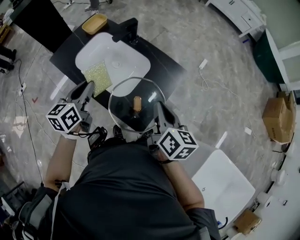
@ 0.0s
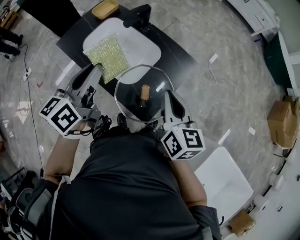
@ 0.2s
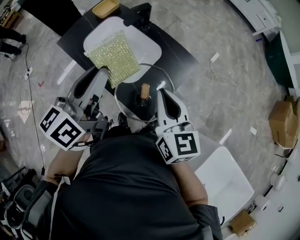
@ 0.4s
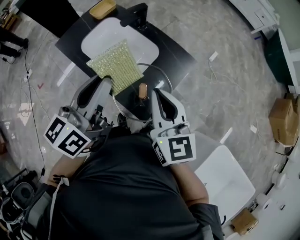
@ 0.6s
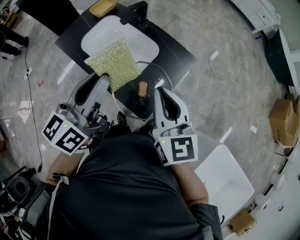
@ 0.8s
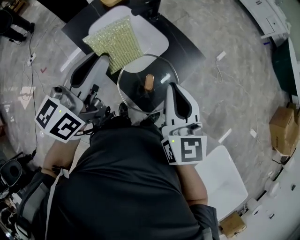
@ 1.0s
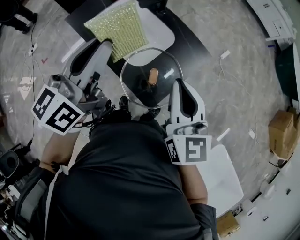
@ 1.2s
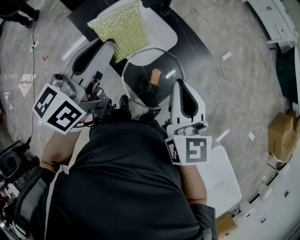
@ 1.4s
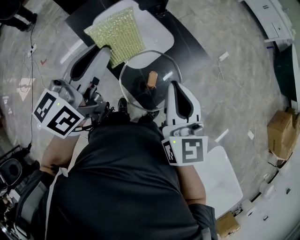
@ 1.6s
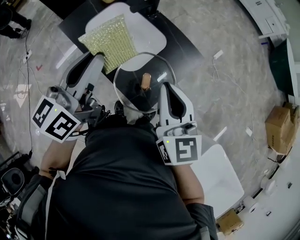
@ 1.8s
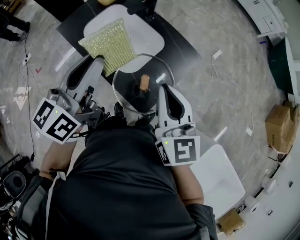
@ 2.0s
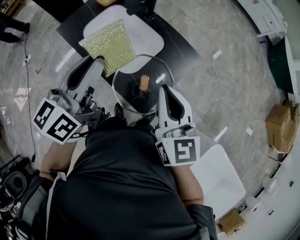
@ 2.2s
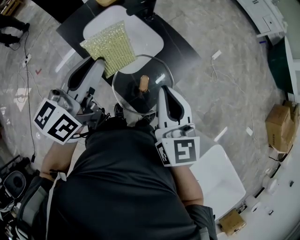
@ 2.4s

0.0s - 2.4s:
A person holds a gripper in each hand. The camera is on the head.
0.0s - 1.2s: The right gripper shifts roughly 10 cm upward, and swivels about 30 degrees, while the left gripper heads upward, covering about 15 cm.
1.2s - 2.4s: There are only small adjustments of the grippers.

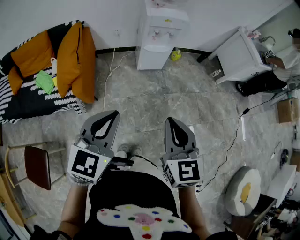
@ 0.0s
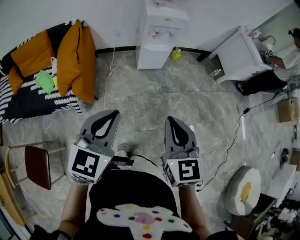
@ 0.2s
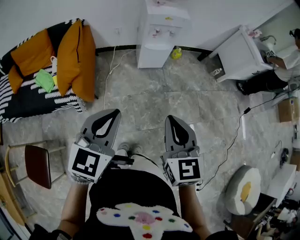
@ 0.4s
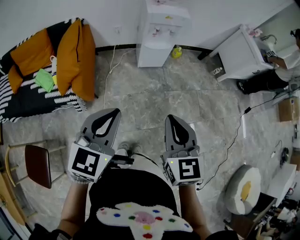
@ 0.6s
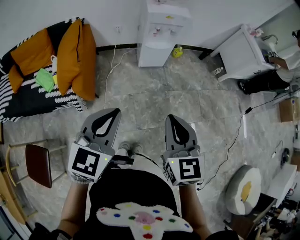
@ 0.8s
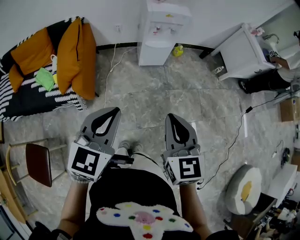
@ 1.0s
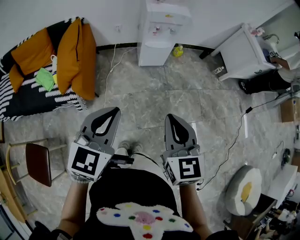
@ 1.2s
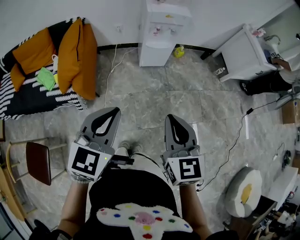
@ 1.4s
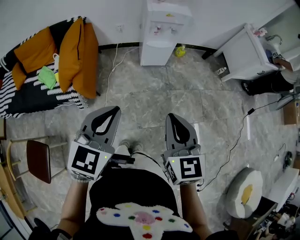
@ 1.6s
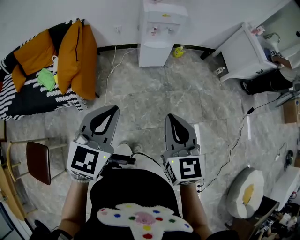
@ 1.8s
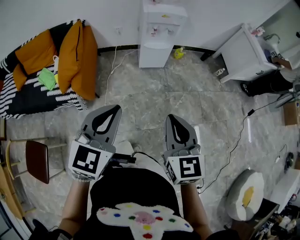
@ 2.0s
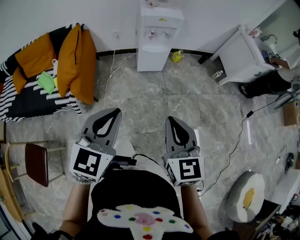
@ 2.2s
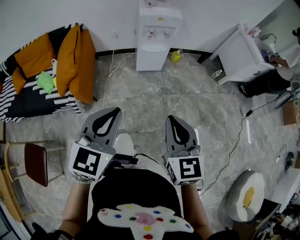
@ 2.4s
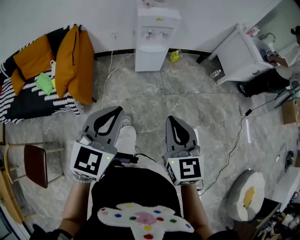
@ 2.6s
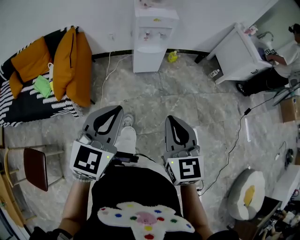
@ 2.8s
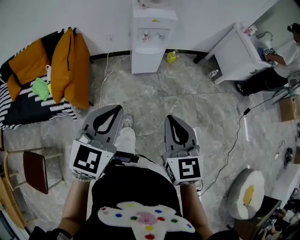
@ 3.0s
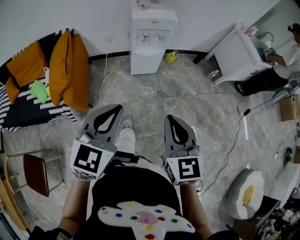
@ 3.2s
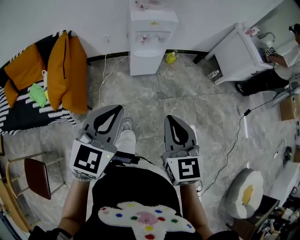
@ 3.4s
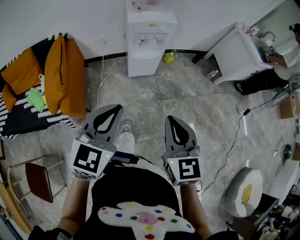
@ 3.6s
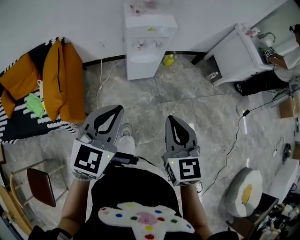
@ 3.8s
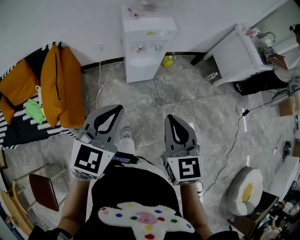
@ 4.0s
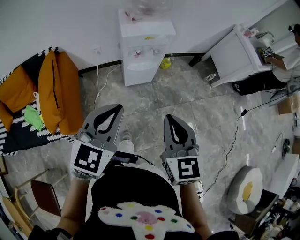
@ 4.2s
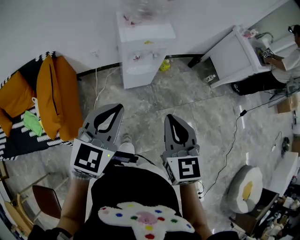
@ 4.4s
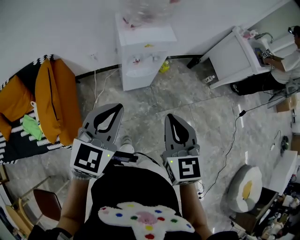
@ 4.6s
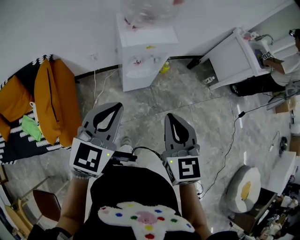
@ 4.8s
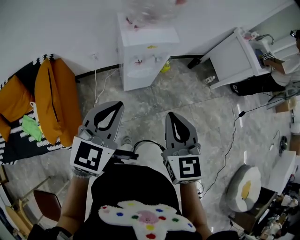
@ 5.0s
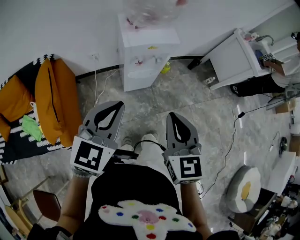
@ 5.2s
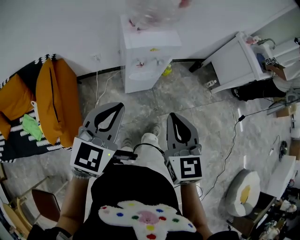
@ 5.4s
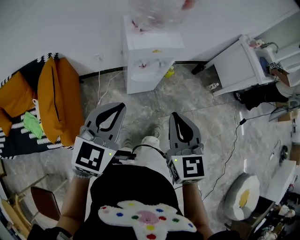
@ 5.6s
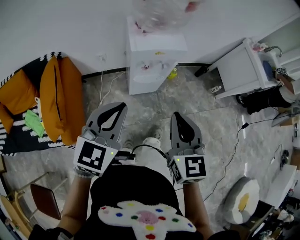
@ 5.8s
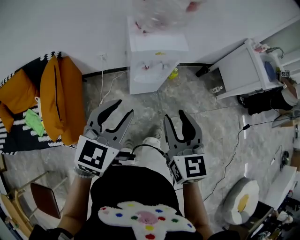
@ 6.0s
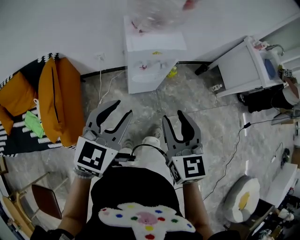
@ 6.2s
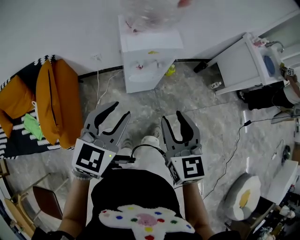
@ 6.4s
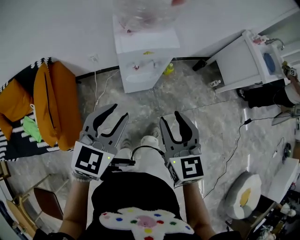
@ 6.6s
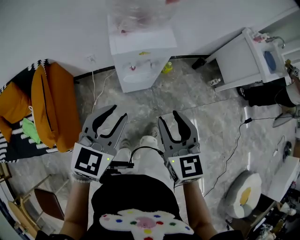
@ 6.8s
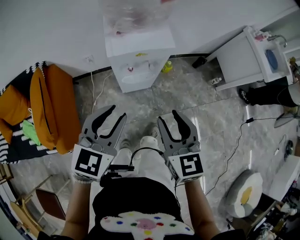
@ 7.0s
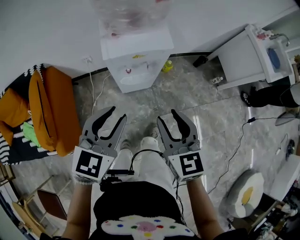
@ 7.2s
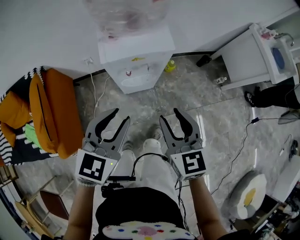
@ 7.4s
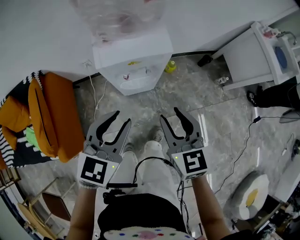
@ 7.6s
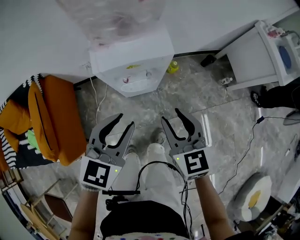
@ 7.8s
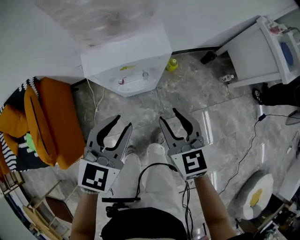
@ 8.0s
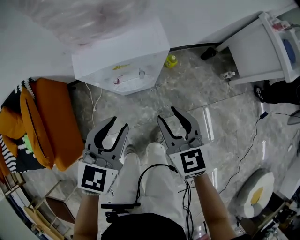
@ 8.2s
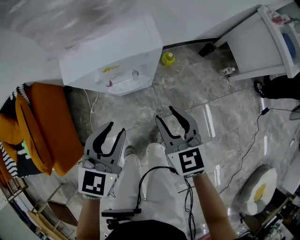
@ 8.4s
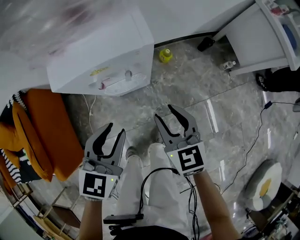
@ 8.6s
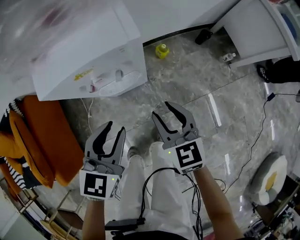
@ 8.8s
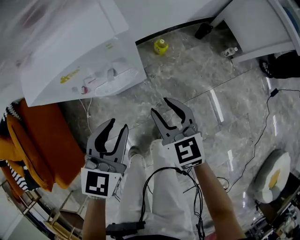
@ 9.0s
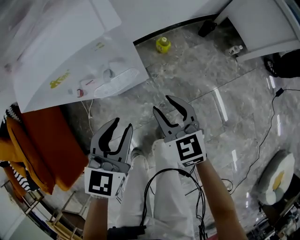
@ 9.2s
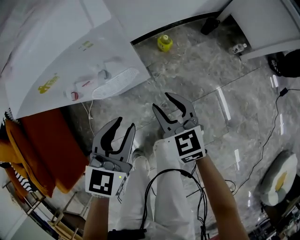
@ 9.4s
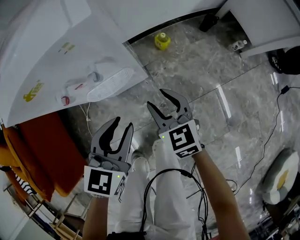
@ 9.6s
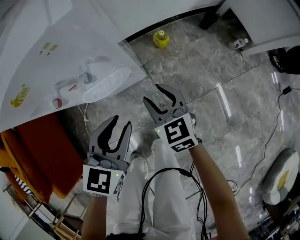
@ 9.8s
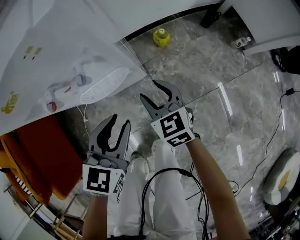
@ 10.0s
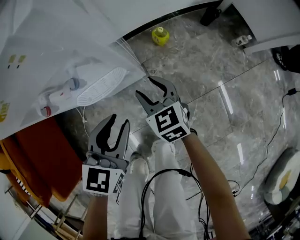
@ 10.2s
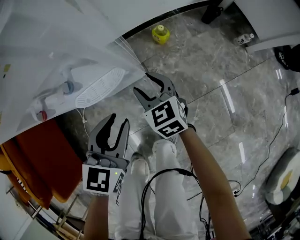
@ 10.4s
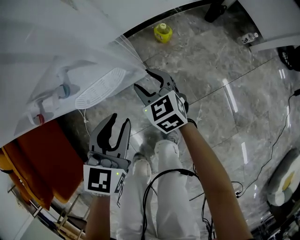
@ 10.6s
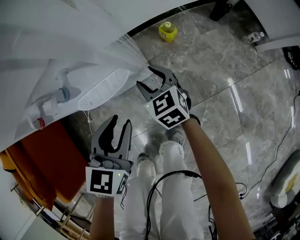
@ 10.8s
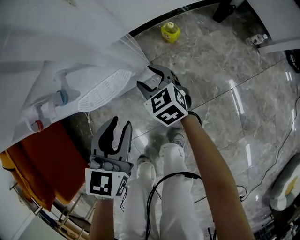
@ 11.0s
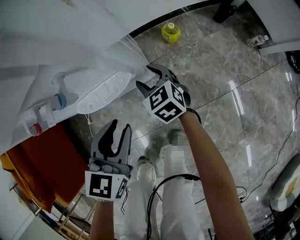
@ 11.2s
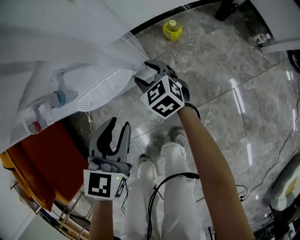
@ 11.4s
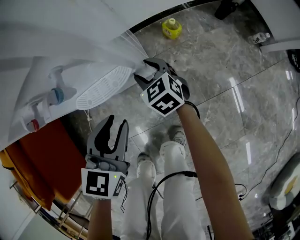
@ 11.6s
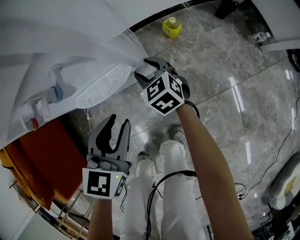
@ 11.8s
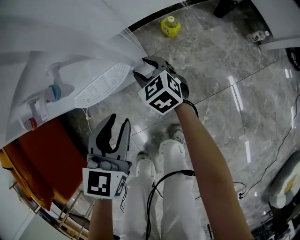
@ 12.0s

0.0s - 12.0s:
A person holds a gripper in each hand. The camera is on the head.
0.0s - 1.6s: The grippers make only small movements.
1.6s - 3.0s: The left gripper is displaced to the right by roughly 5 cm.
3.0s - 4.4s: Both grippers travel together forward, some 25 cm.
4.4s - 6.0s: Both grippers move forward, some 5 cm. The left gripper opens its fingers; the right gripper opens.
6.0s - 7.6s: The left gripper shifts some 15 cm forward, to the right and downward. Meanwhile the right gripper heads forward, downward and to the right, covering approximately 20 cm.
7.6s - 9.0s: The two grippers go approximately 20 cm downward.
9.0s - 10.4s: The right gripper shifts some 25 cm downward and forward, while the left gripper goes some 15 cm downward.
10.4s - 12.0s: The right gripper travels downward and forward by roughly 10 cm.

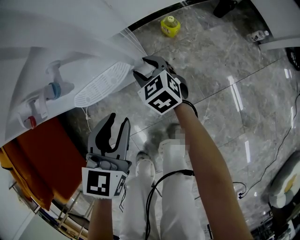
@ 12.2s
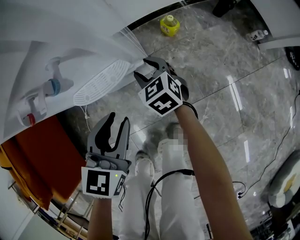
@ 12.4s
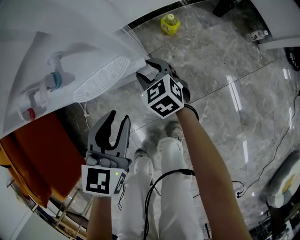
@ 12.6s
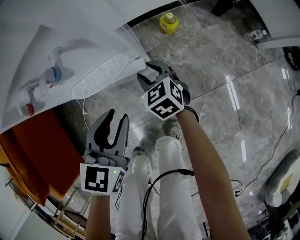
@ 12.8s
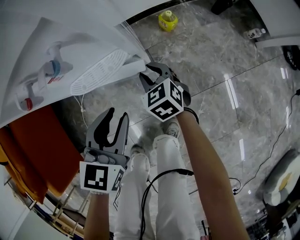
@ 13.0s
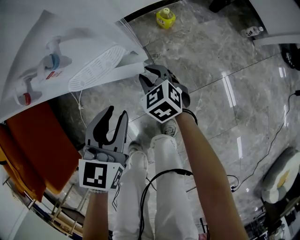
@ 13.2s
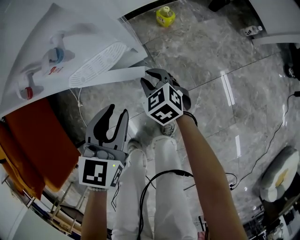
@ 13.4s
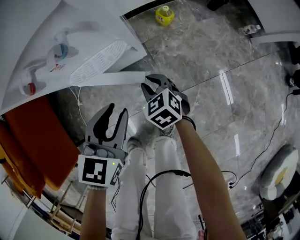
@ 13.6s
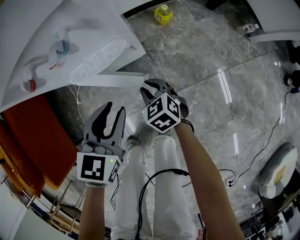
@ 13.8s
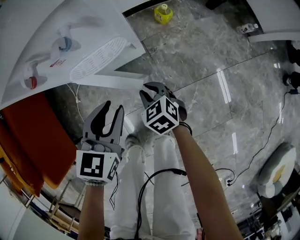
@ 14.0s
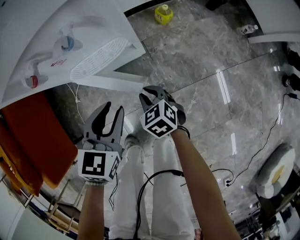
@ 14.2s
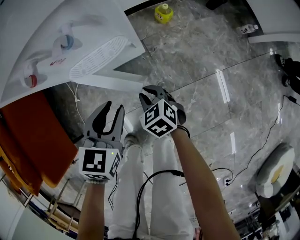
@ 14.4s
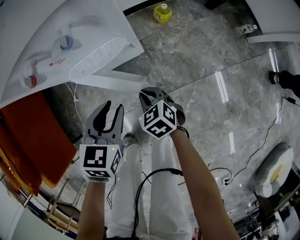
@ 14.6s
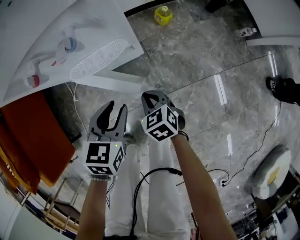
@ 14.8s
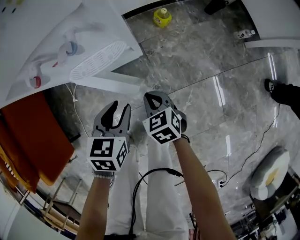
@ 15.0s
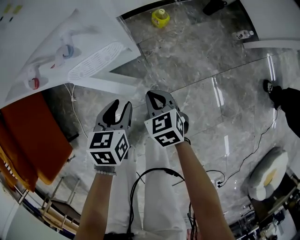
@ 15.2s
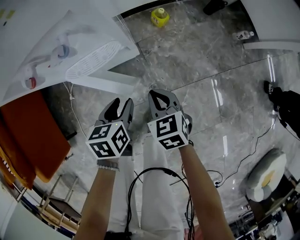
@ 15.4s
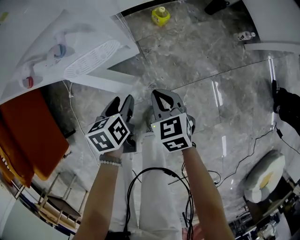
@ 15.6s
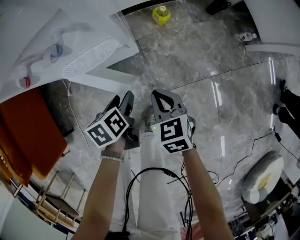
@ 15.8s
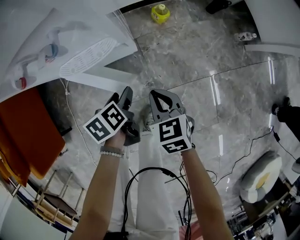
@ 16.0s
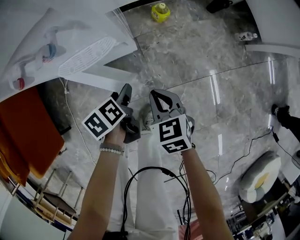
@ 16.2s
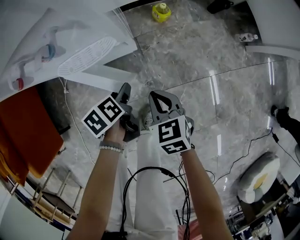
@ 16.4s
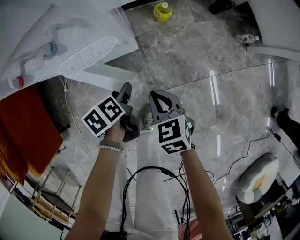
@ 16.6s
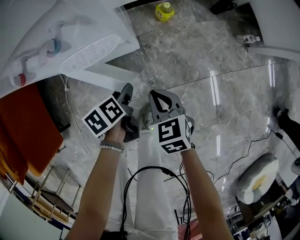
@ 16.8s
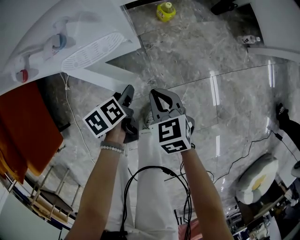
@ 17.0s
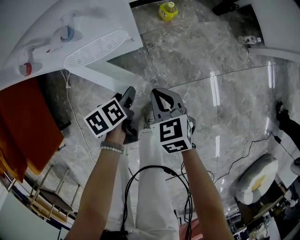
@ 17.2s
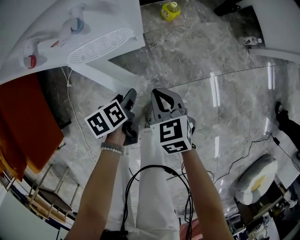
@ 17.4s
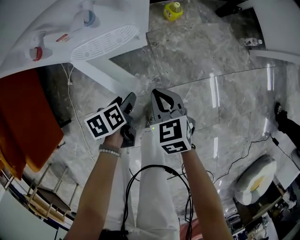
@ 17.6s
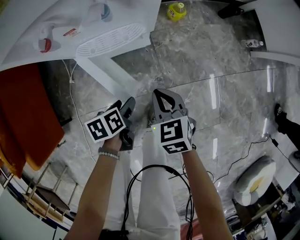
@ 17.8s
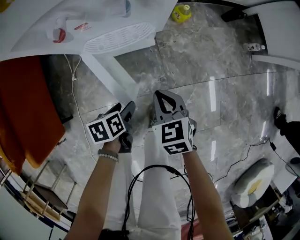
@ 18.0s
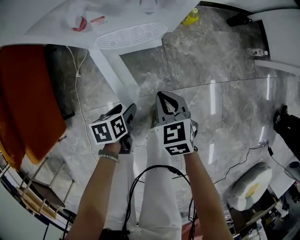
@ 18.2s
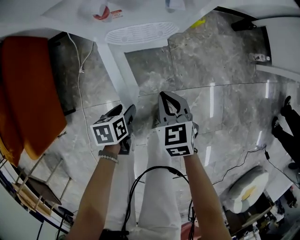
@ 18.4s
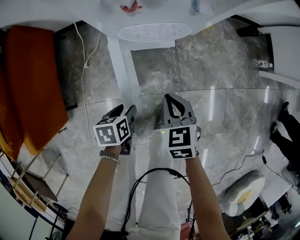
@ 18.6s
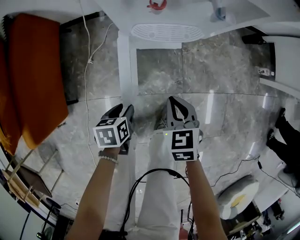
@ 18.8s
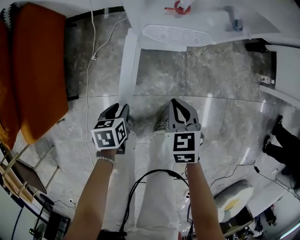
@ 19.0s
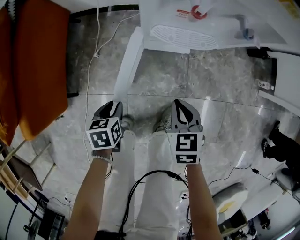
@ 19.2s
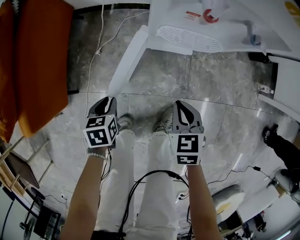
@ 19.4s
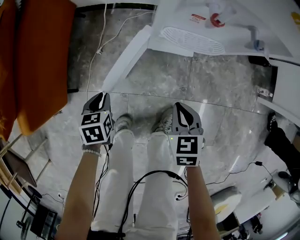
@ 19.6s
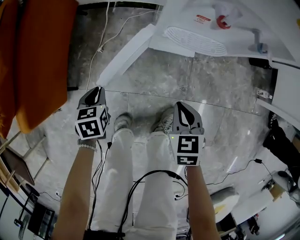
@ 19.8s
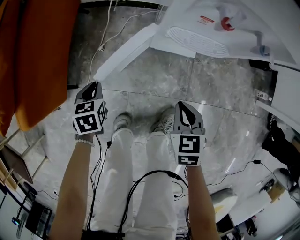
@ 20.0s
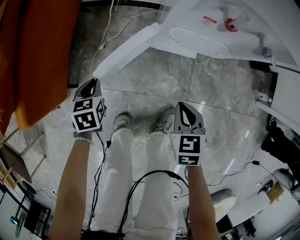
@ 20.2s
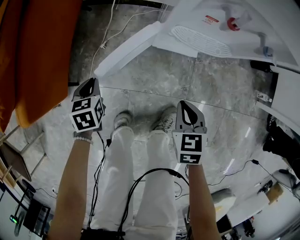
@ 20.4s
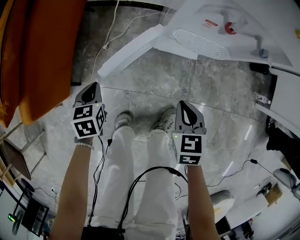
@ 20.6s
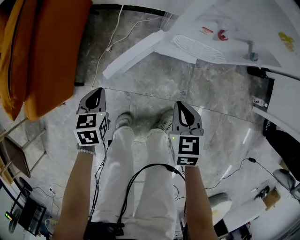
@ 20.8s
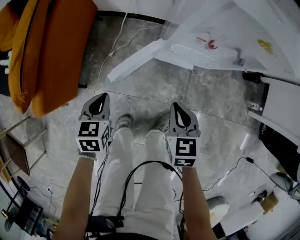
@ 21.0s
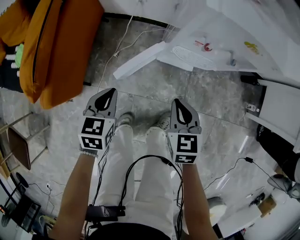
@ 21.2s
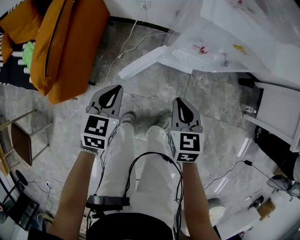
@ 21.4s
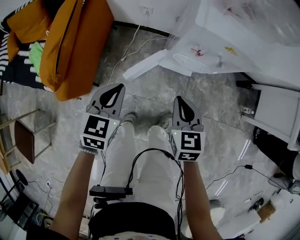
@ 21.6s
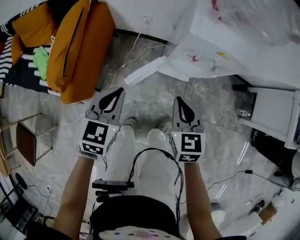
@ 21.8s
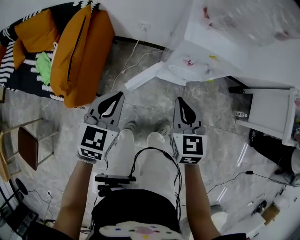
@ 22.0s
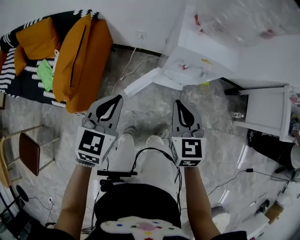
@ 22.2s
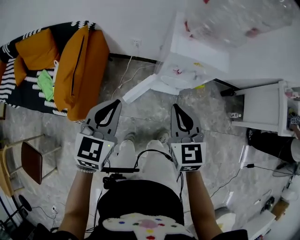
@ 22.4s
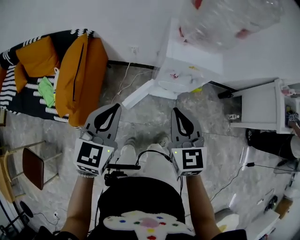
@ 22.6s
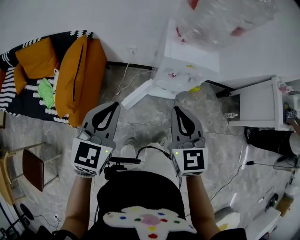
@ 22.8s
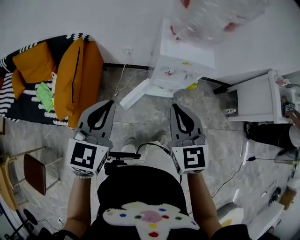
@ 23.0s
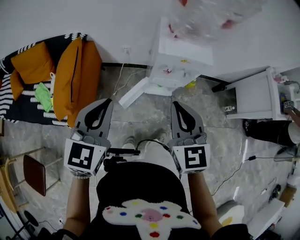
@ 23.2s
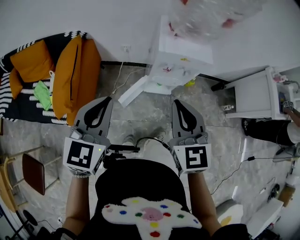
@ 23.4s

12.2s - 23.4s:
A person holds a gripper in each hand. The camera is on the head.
12.2s - 13.8s: The right gripper goes roughly 15 cm backward, and closes up.
13.8s - 15.4s: The right gripper shifts roughly 10 cm upward and to the right, while the left gripper moves downward, some 10 cm, and rotates some 30 degrees.
15.4s - 17.0s: The left gripper is displaced downward by about 5 cm, and rotates some 30 degrees.
17.0s - 18.6s: The left gripper moves backward and to the left, about 20 cm; the right gripper moves to the left and backward, approximately 15 cm.
18.6s - 20.2s: The left gripper changes place by approximately 20 cm, turns by some 30 degrees, and closes its fingers.
20.2s - 21.8s: The grippers both shift upward by about 35 cm. The left gripper changes its angle by roughly 30 degrees. The right gripper rotates approximately 20 degrees.
21.8s - 23.4s: Both grippers travel together upward, approximately 25 cm. The right gripper turns by about 20 degrees; the left gripper changes its angle by some 20 degrees.
